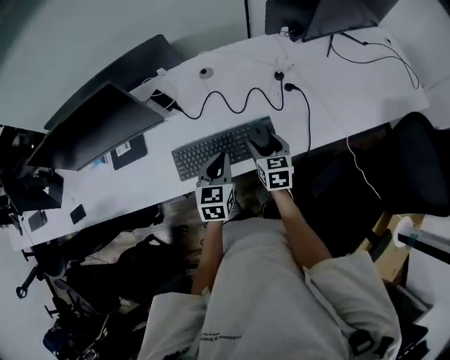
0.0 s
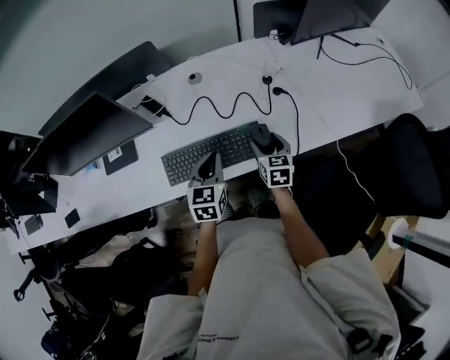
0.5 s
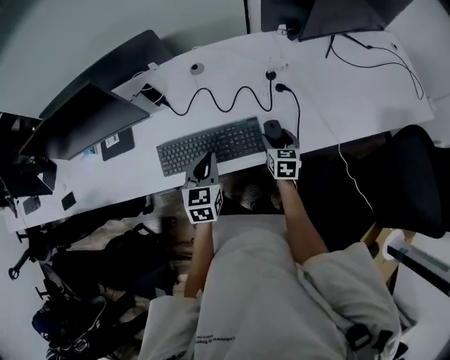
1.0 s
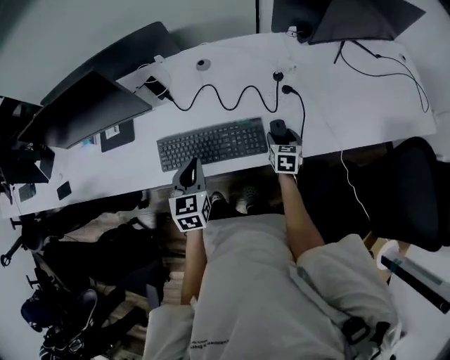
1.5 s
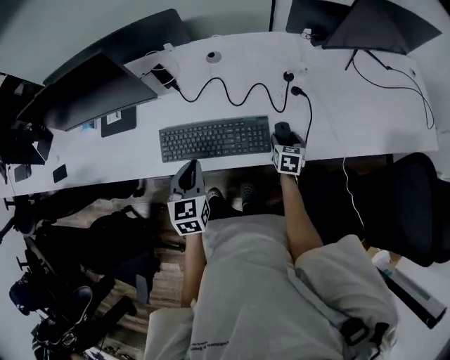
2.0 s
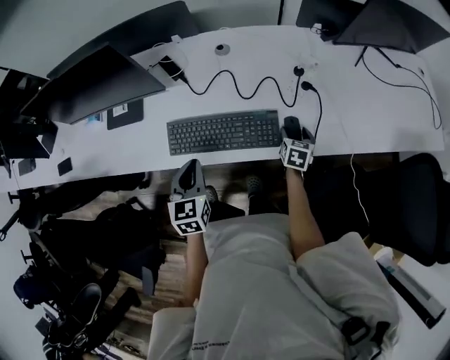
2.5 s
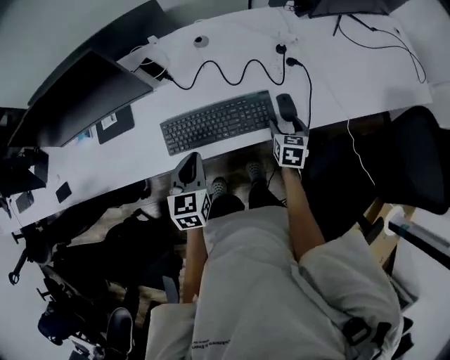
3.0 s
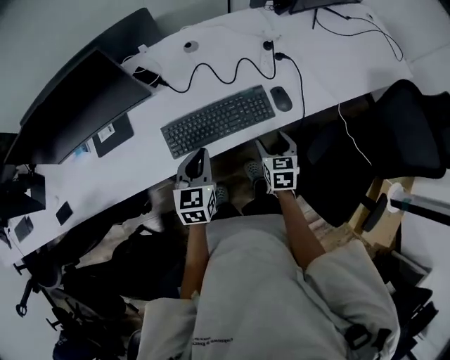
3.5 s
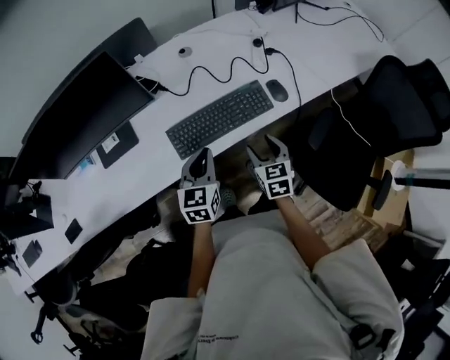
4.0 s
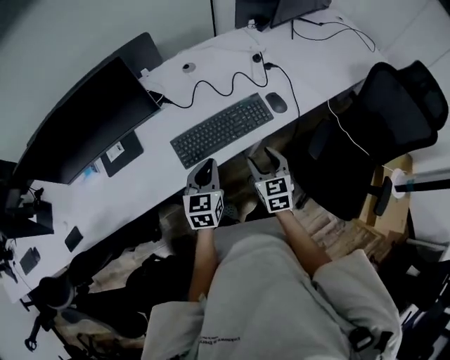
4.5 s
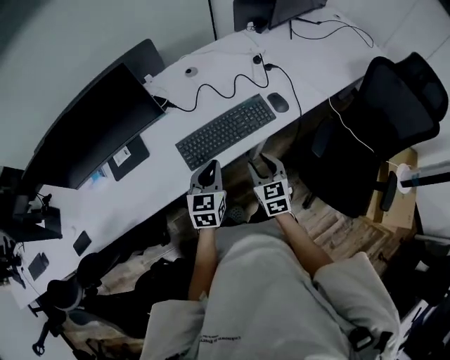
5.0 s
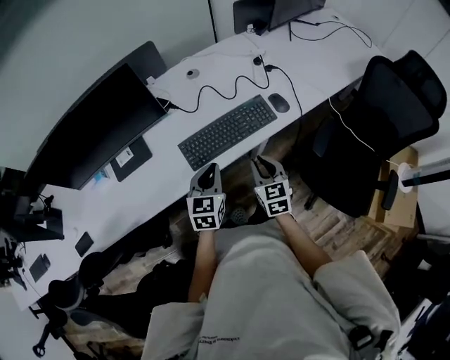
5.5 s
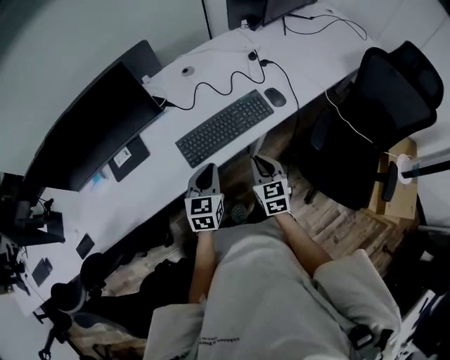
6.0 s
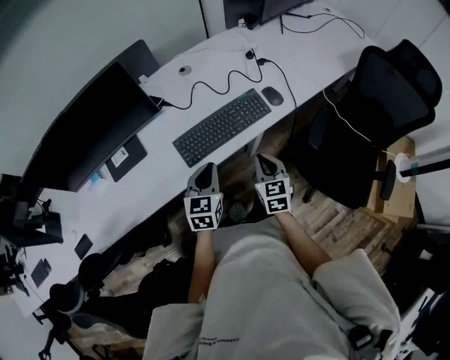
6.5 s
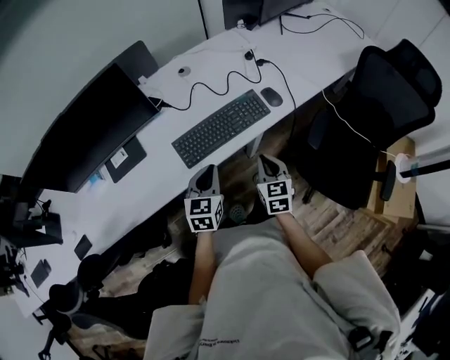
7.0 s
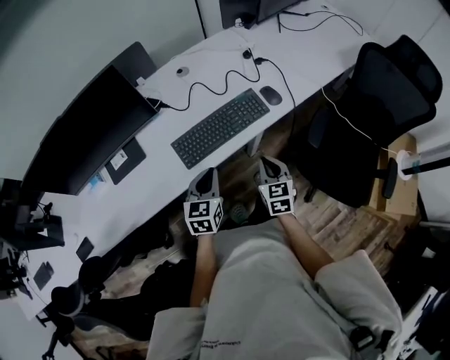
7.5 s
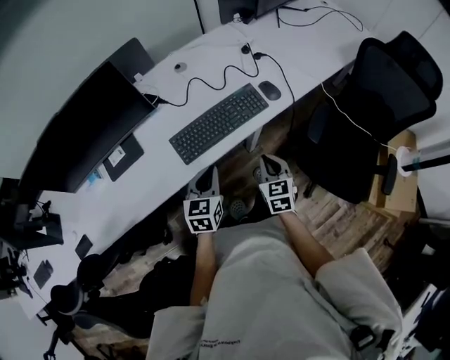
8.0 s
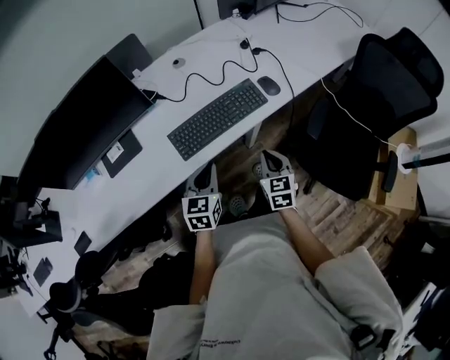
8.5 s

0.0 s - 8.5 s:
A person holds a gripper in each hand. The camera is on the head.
0.0 s - 2.0 s: The right gripper is displaced to the right and downward by about 15 cm; the left gripper changes place by some 5 cm.
2.0 s - 4.0 s: The left gripper moves to the left, roughly 5 cm, and changes its angle by approximately 30 degrees; the right gripper heads backward, to the left and upward, covering roughly 30 cm.
4.0 s - 6.5 s: The two grippers go some 5 cm backward. The right gripper closes up.
6.5 s - 8.5 s: The grippers move only a little.

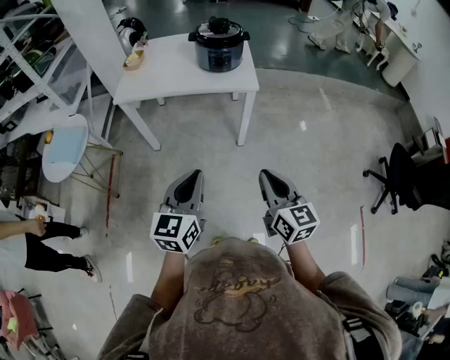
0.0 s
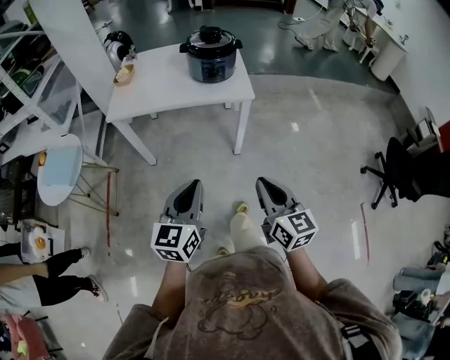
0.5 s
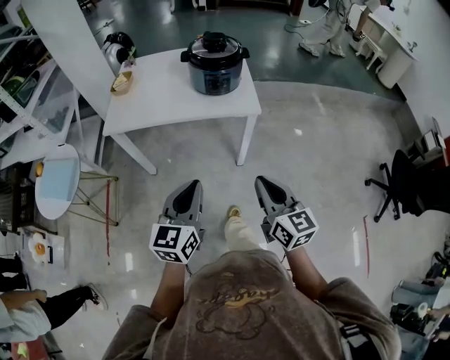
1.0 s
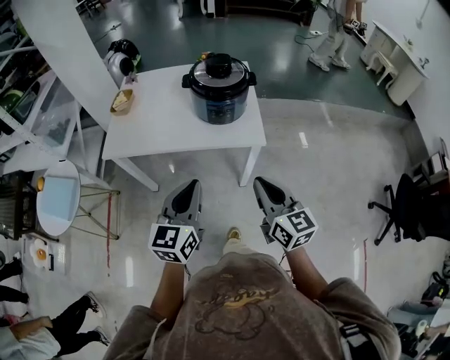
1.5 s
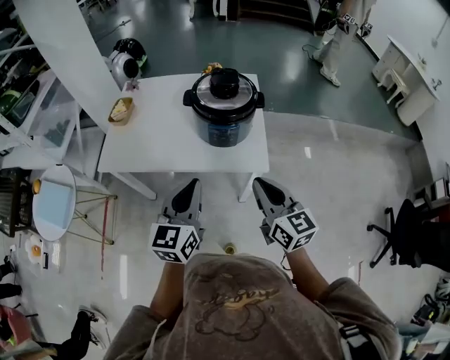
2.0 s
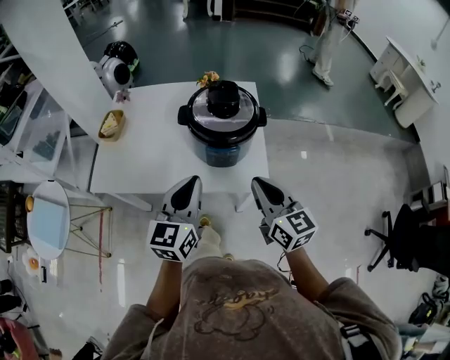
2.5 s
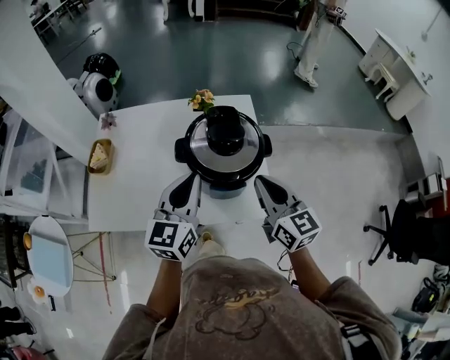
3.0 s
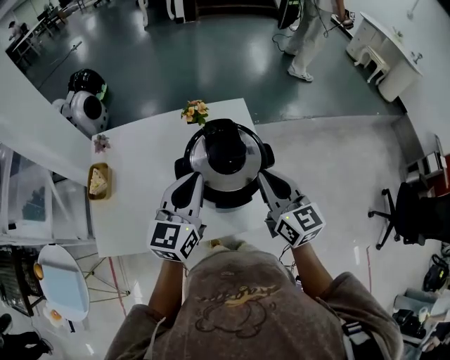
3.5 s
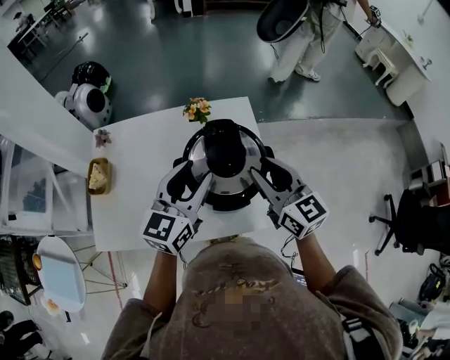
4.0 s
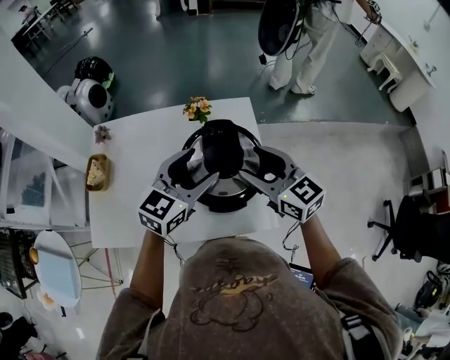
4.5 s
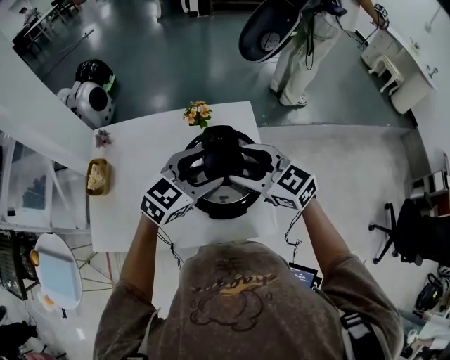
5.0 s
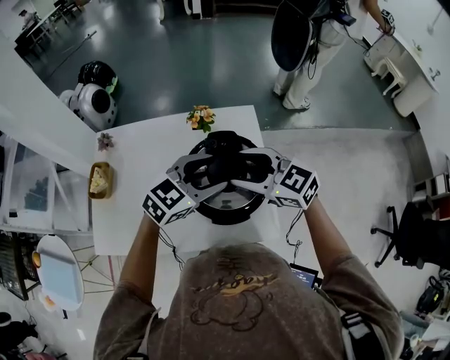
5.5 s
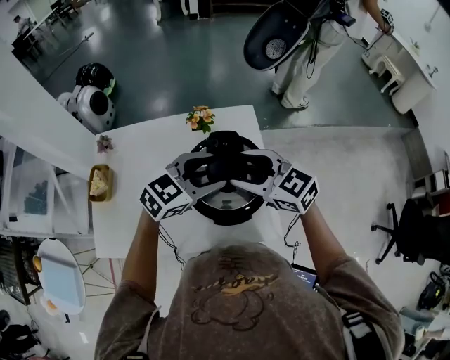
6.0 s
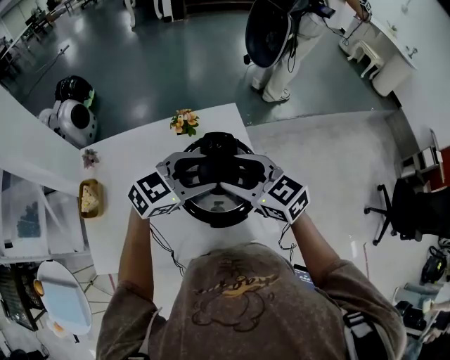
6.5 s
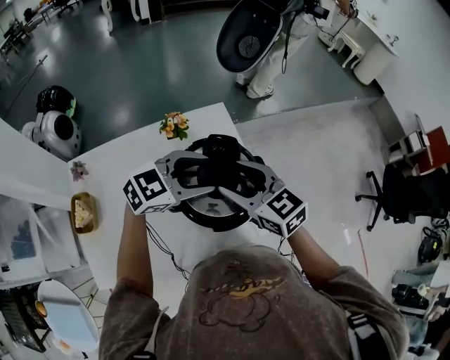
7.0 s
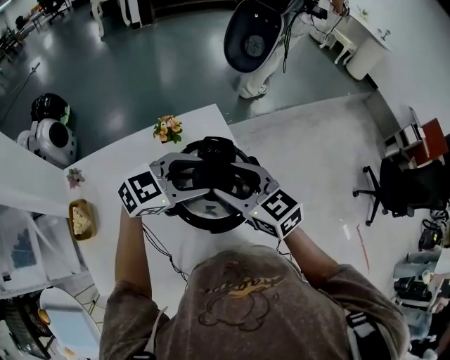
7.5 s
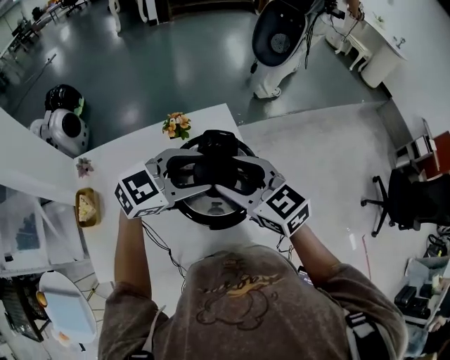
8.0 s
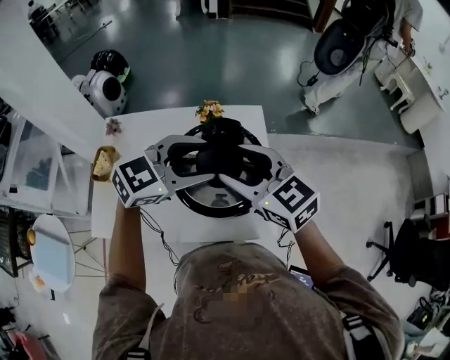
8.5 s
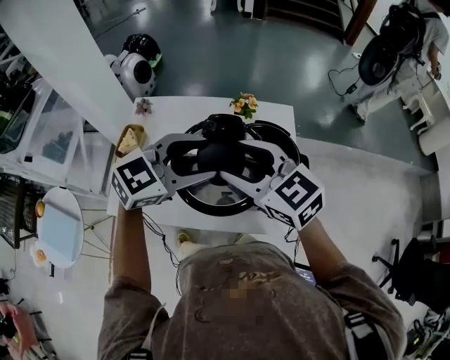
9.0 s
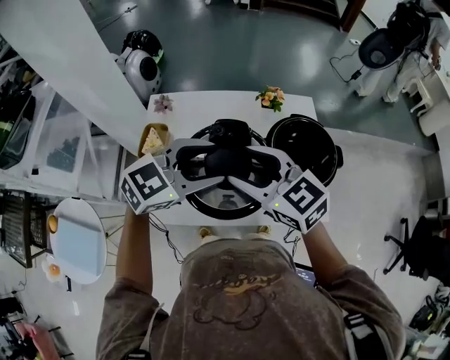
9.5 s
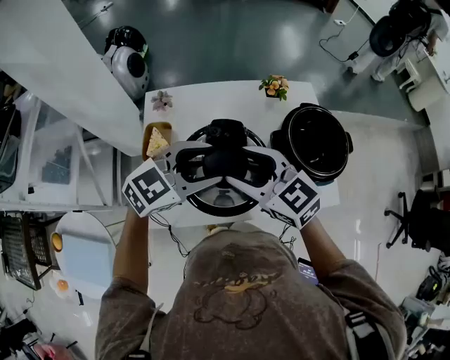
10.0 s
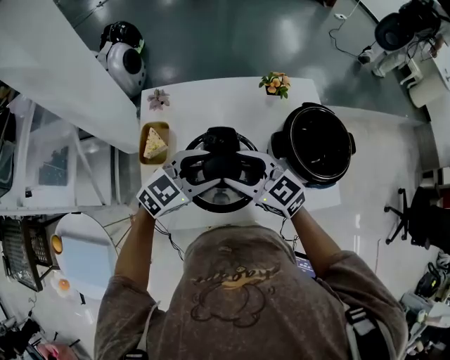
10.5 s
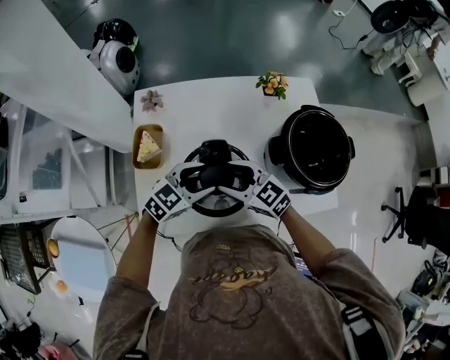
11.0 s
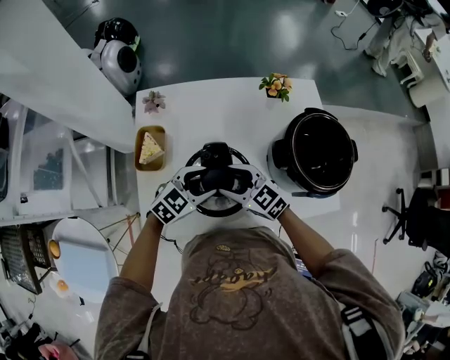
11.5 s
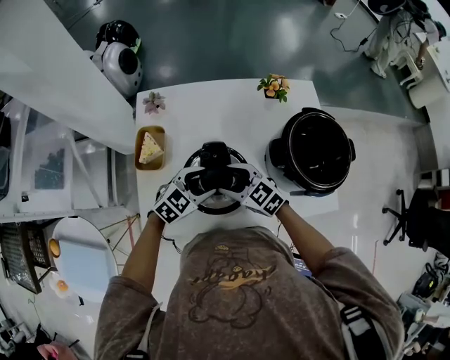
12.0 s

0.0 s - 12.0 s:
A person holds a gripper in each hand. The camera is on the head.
0.0 s - 2.0 s: The grippers both shift forward by roughly 40 cm.
2.0 s - 4.0 s: Both grippers move forward, some 30 cm. The left gripper swivels some 20 degrees, and opens its fingers; the right gripper opens.
4.0 s - 6.0 s: The right gripper travels to the left by some 5 cm, turns by approximately 30 degrees, and opens up; the left gripper travels to the right by about 5 cm, and swivels some 40 degrees.
6.0 s - 8.0 s: The right gripper swivels approximately 20 degrees.
8.0 s - 10.0 s: The right gripper goes some 30 cm to the left; the left gripper travels to the left and backward by roughly 30 cm.
10.0 s - 12.0 s: The two grippers go about 20 cm downward.

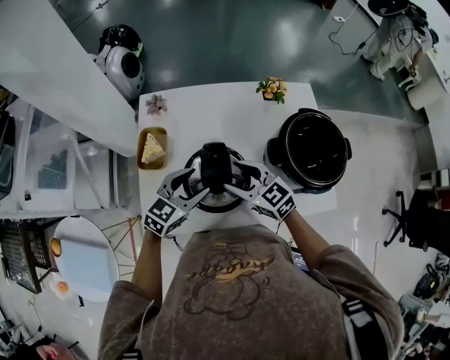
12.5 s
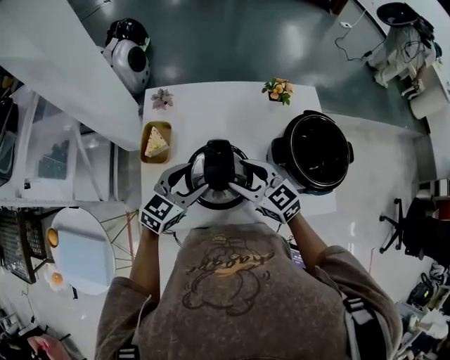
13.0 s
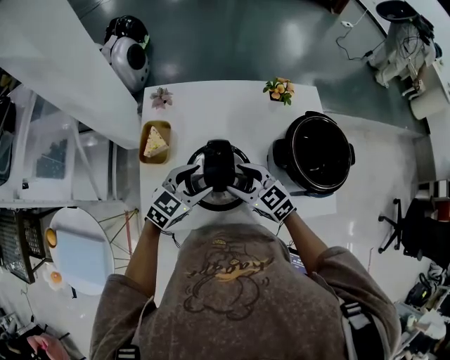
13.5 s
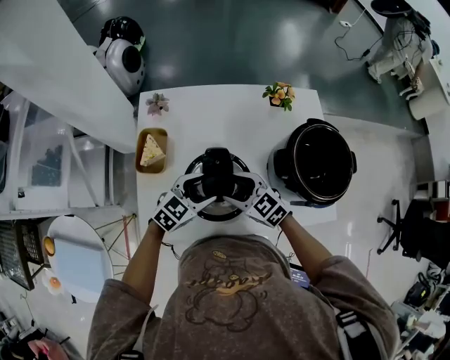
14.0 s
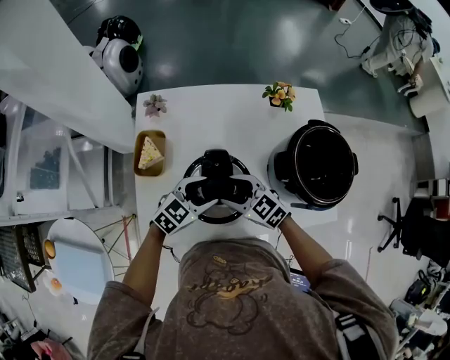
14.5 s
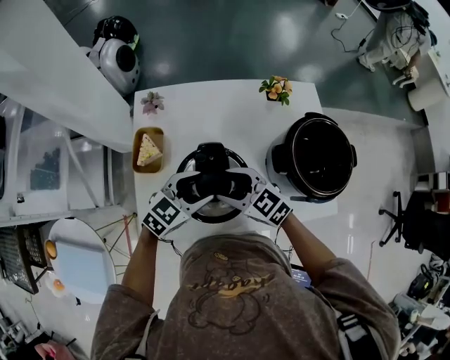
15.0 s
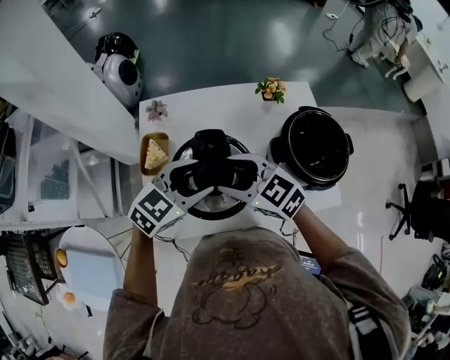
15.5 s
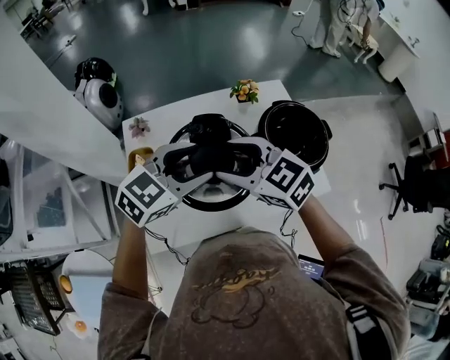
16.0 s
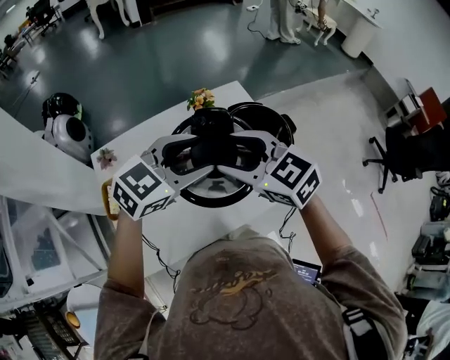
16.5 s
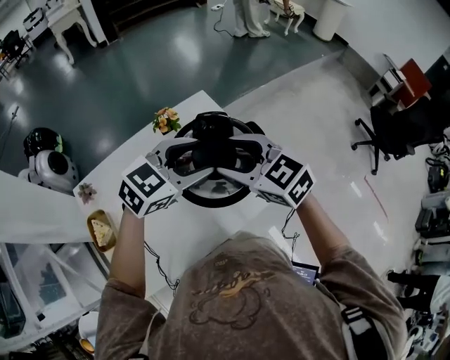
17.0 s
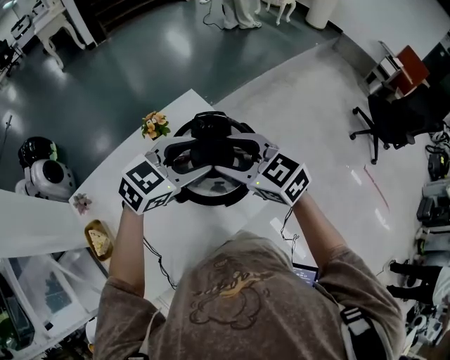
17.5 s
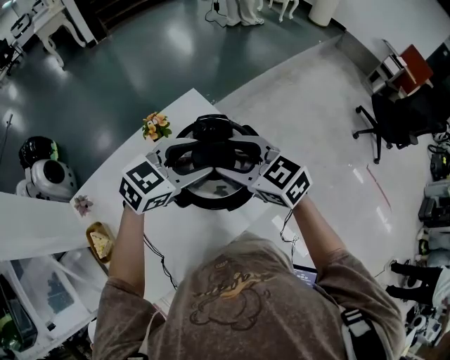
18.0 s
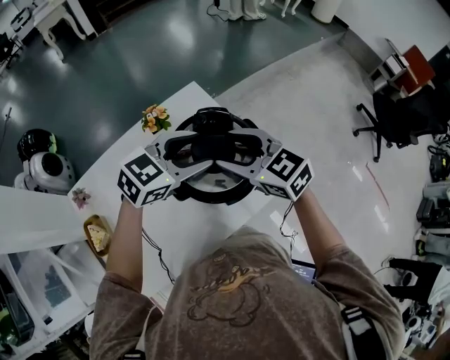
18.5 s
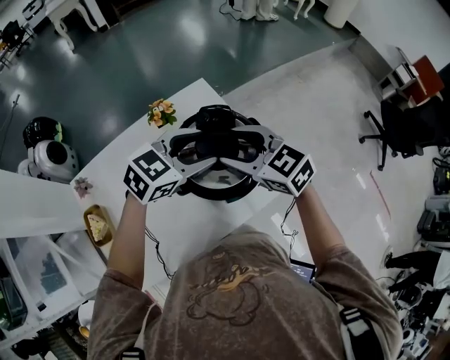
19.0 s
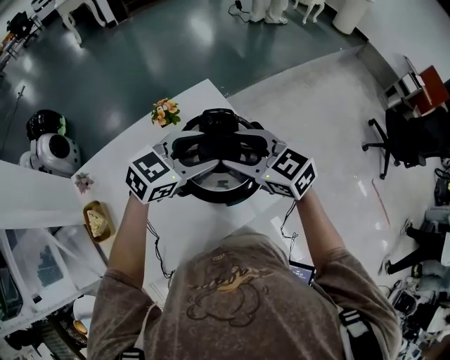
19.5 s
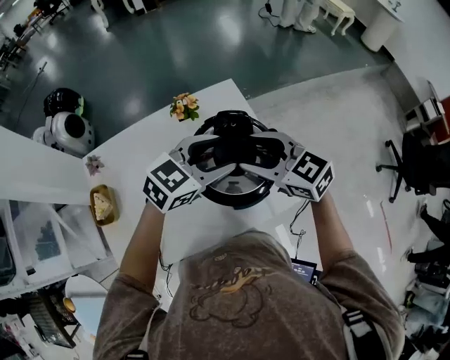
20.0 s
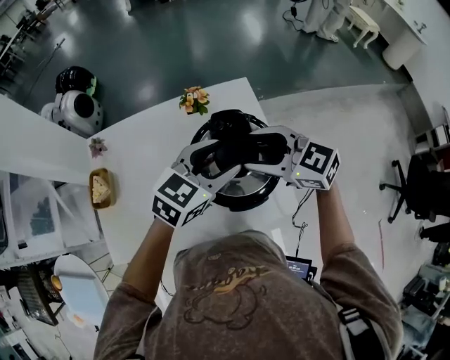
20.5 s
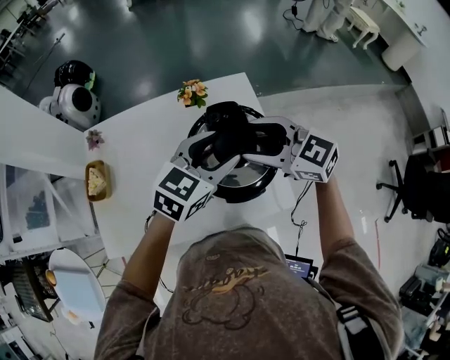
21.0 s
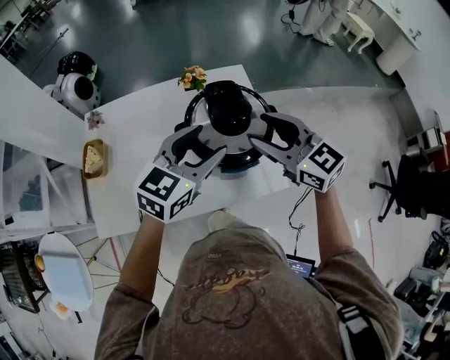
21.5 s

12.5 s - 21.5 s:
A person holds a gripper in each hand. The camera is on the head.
12.5 s - 14.5 s: The grippers both shift downward by about 5 cm.
14.5 s - 17.0 s: The right gripper moves some 35 cm, and rotates about 40 degrees; the left gripper moves some 35 cm, and turns by some 30 degrees.
17.0 s - 19.5 s: Both grippers move forward, about 5 cm.
19.5 s - 21.5 s: The right gripper shifts by about 10 cm, while the left gripper shifts by some 10 cm, and swivels about 40 degrees.
